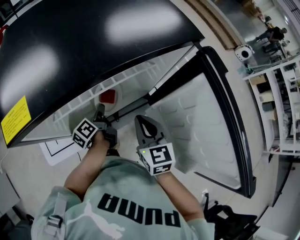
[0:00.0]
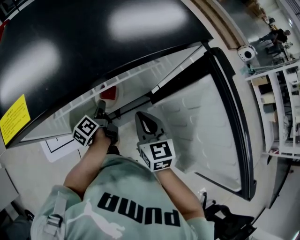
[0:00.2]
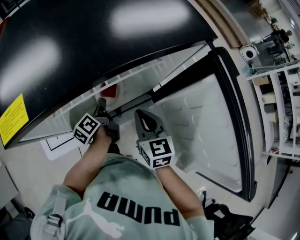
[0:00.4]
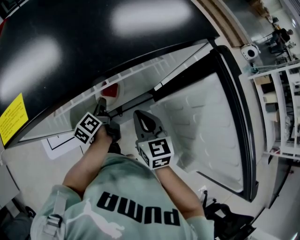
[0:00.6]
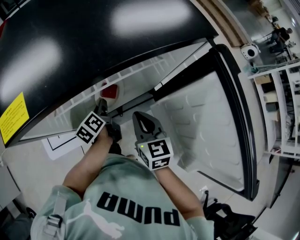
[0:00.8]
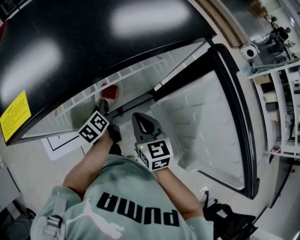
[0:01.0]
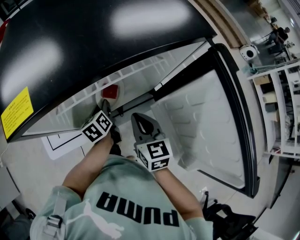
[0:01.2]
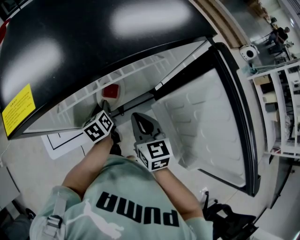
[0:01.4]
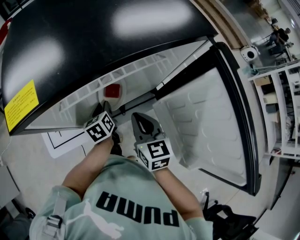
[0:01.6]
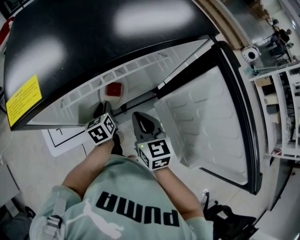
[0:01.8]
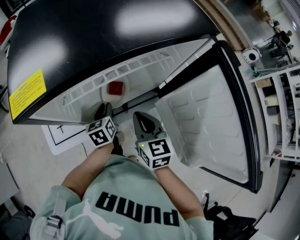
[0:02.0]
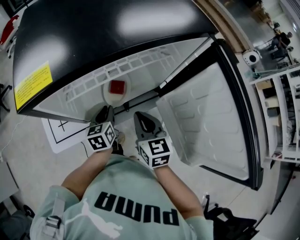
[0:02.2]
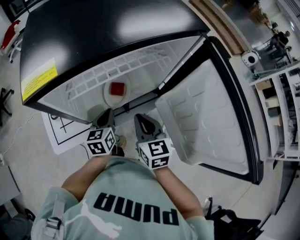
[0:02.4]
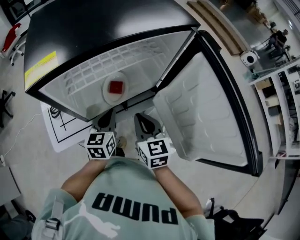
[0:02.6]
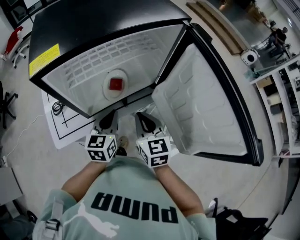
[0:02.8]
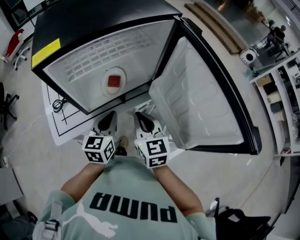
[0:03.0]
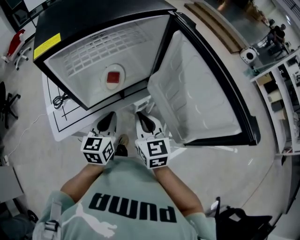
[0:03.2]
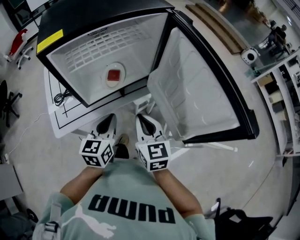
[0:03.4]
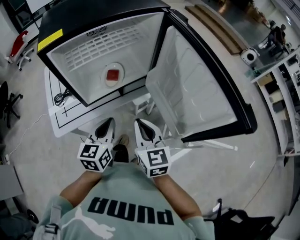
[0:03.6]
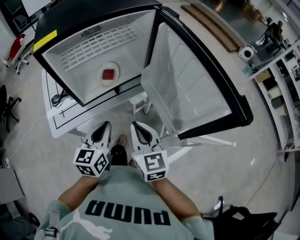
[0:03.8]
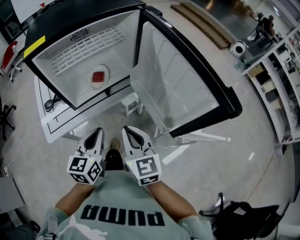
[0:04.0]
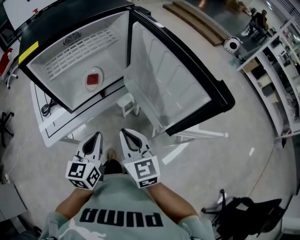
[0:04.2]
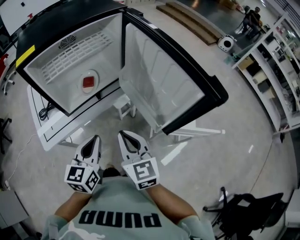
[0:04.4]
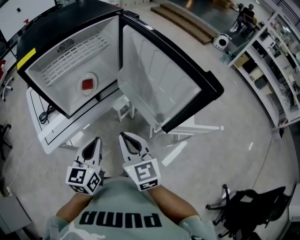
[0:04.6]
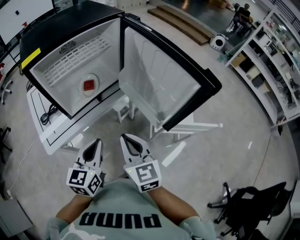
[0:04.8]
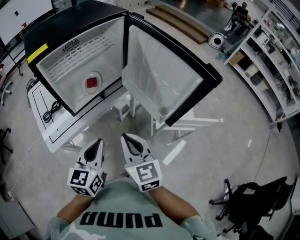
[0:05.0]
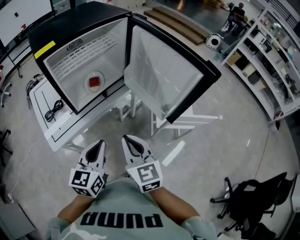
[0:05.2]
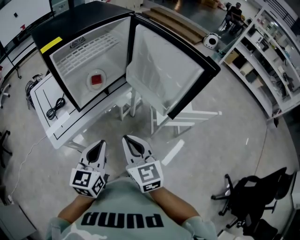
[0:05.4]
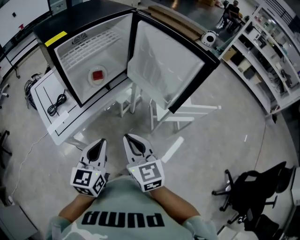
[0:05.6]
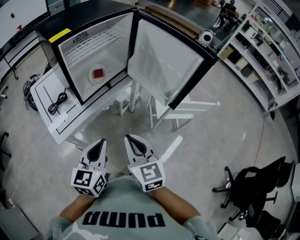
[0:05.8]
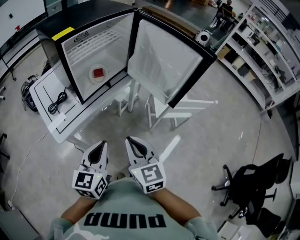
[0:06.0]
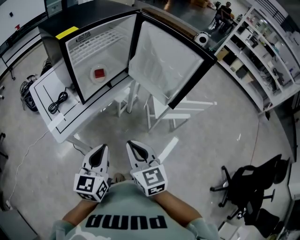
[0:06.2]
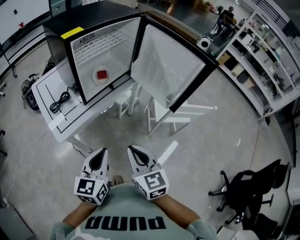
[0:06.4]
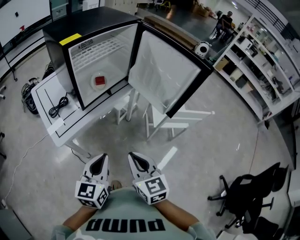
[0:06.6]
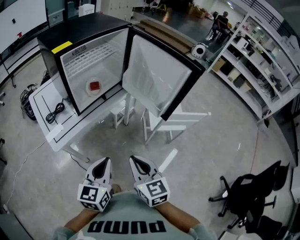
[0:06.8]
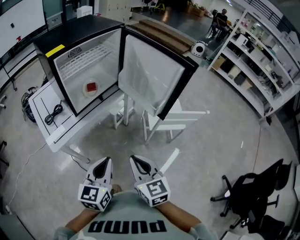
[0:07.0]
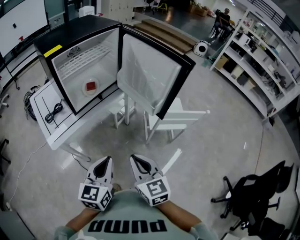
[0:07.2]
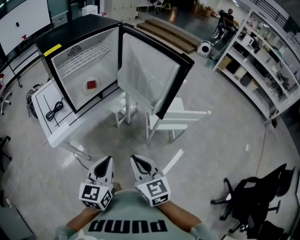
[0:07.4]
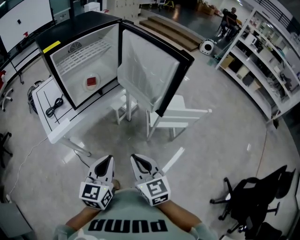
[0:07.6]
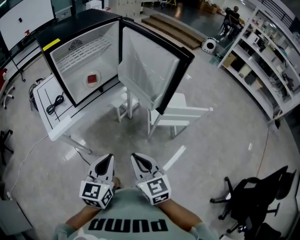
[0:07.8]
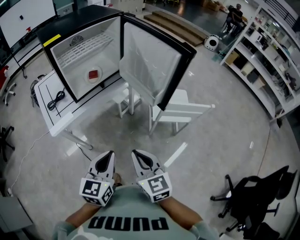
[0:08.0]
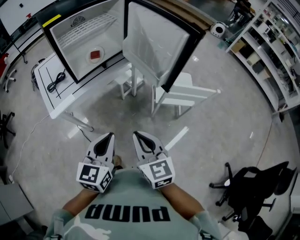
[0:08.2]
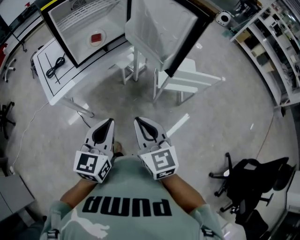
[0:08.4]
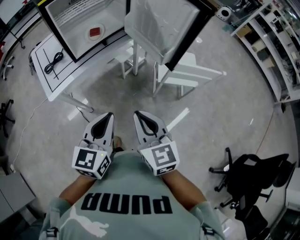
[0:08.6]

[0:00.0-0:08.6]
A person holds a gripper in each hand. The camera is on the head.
0:00.0 to 0:01.4: The left gripper rotates roughly 40 degrees.
0:01.4 to 0:02.8: The right gripper heads backward, covering roughly 5 cm, while the left gripper heads backward and upward, covering some 15 cm, changes its angle by approximately 40 degrees, and closes up.
0:02.8 to 0:04.4: The two grippers go roughly 20 cm backward.
0:04.4 to 0:05.8: The grippers both shift backward and to the left by some 15 cm.
0:05.8 to 0:07.2: The two grippers go some 10 cm to the right and backward.
0:07.2 to 0:08.6: The grippers make only small movements.

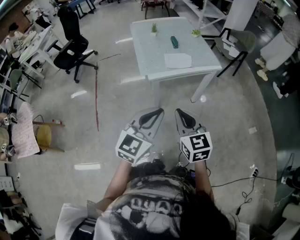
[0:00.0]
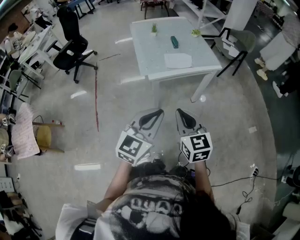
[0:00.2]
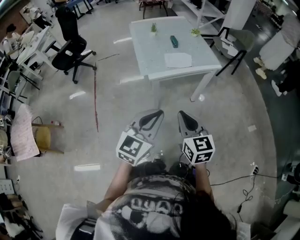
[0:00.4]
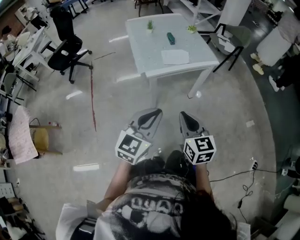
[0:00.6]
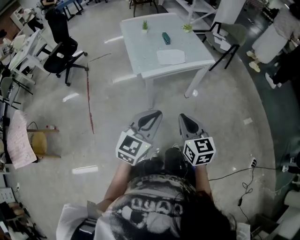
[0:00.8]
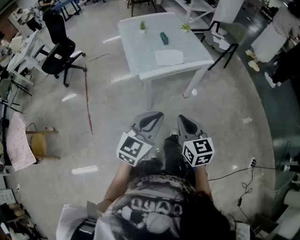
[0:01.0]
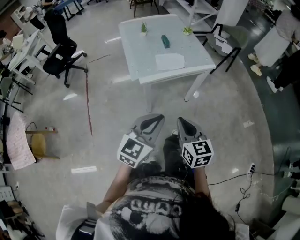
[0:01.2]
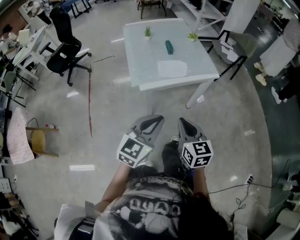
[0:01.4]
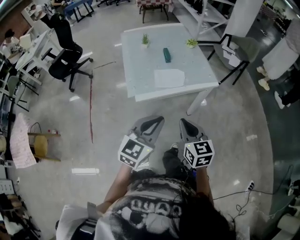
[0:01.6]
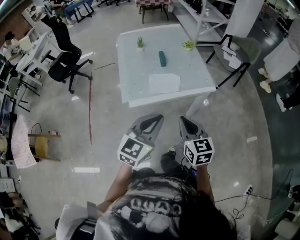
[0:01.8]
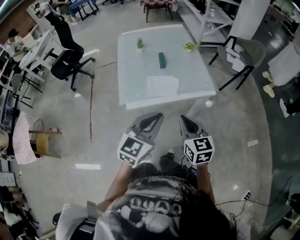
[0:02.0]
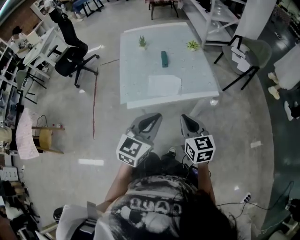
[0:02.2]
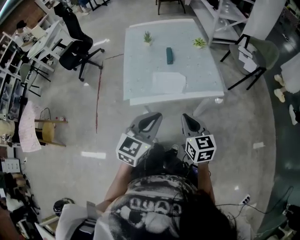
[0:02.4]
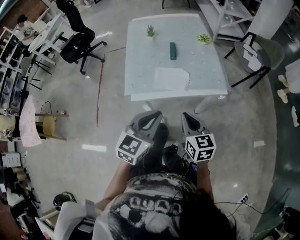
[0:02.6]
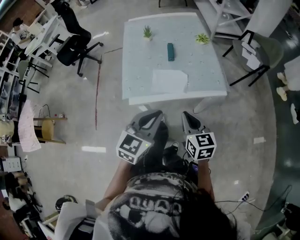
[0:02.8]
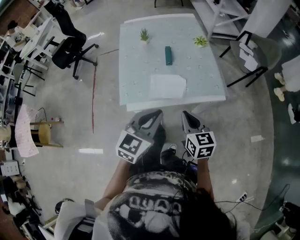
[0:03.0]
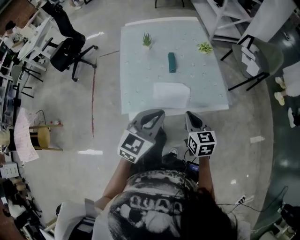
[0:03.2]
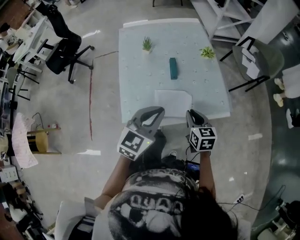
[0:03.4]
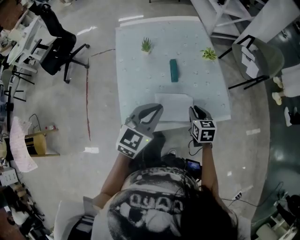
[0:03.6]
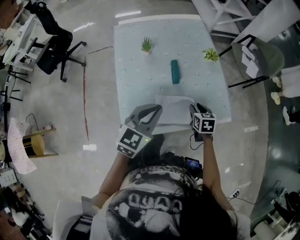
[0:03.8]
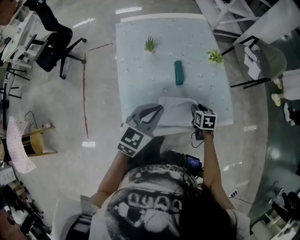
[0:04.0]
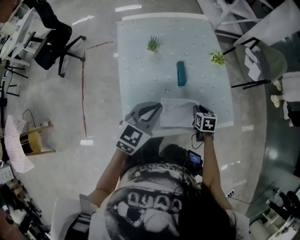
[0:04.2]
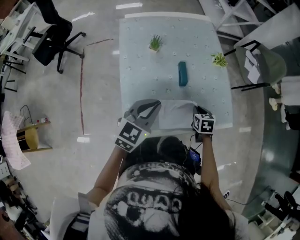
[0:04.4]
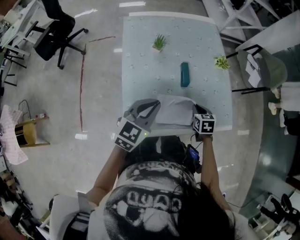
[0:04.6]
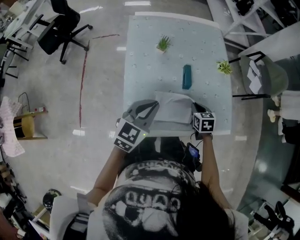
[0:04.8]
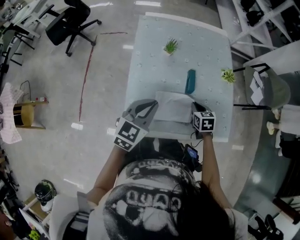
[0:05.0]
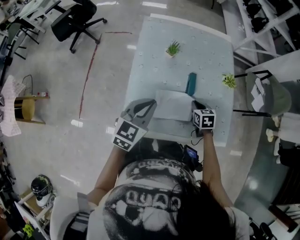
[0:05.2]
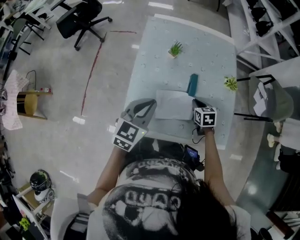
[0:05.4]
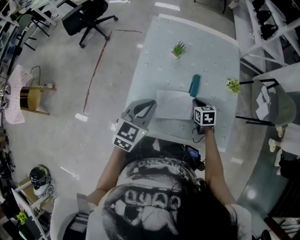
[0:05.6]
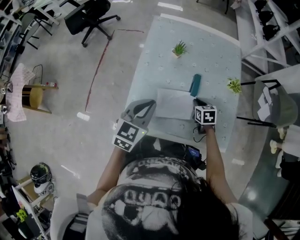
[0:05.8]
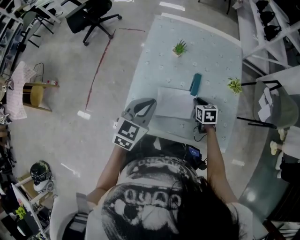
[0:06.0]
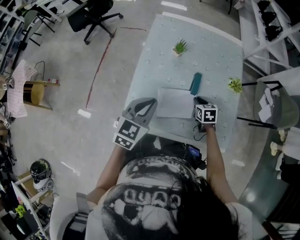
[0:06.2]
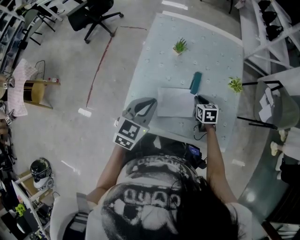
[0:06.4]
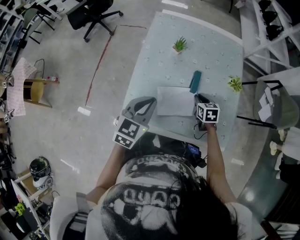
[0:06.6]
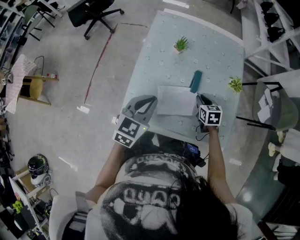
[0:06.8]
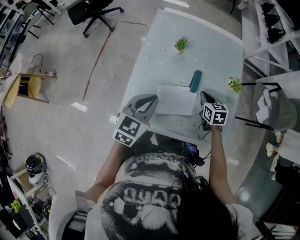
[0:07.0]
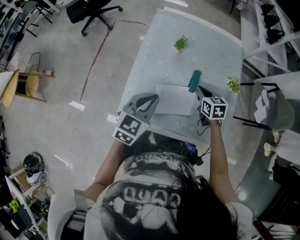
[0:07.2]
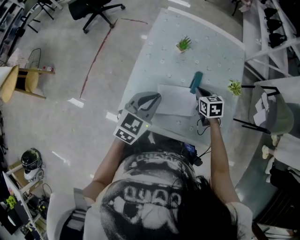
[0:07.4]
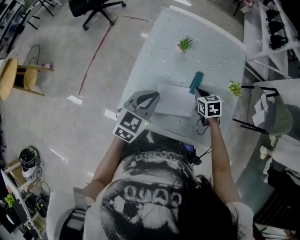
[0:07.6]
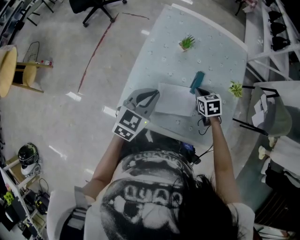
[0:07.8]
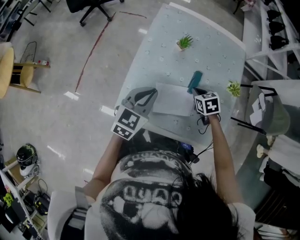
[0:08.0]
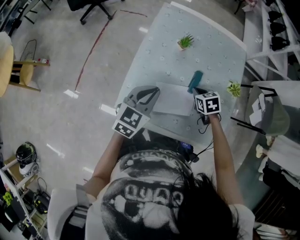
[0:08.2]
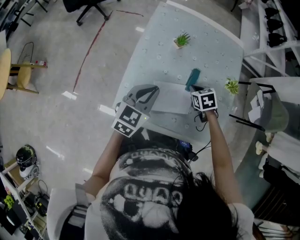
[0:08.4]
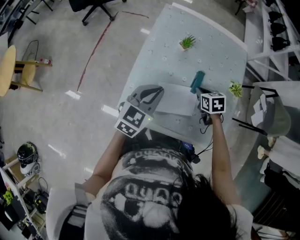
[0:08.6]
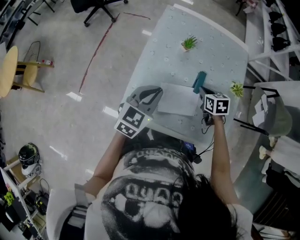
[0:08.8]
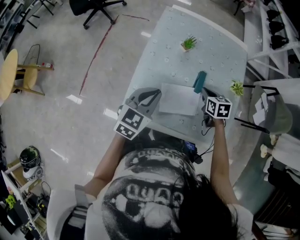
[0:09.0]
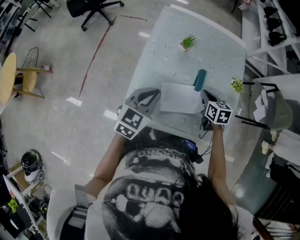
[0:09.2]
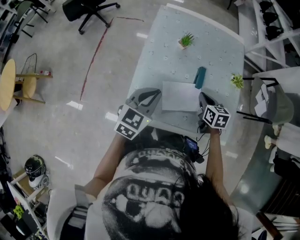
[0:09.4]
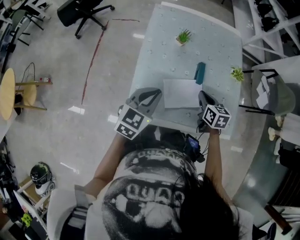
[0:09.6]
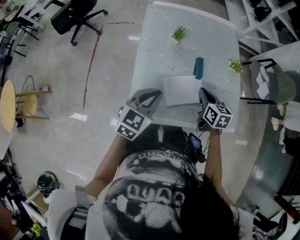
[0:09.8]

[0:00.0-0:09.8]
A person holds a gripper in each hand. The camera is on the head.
0:00.0 to 0:01.4: The left gripper is displaced forward and downward by roughly 10 cm. Meanwhile the right gripper travels forward, downward and to the right by approximately 10 cm.
0:01.4 to 0:02.8: Both grippers move forward and to the right, some 20 cm.
0:02.8 to 0:04.2: The right gripper shifts roughly 35 cm forward and downward, points its fingers roughly 30 degrees further downward, and opens up, while the left gripper heads forward and to the left, covering approximately 30 cm.
0:04.2 to 0:05.6: The left gripper ends up approximately 5 cm from where it was, and swivels some 20 degrees. Meanwhile the right gripper shifts by some 15 cm, and rotates about 30 degrees.
0:05.6 to 0:07.0: The right gripper shifts roughly 5 cm upward.
0:07.0 to 0:08.4: The right gripper changes place by roughly 5 cm, and changes its angle by approximately 30 degrees.
0:08.4 to 0:09.8: The right gripper goes roughly 10 cm upward and backward, and changes its angle by roughly 40 degrees. The left gripper travels backward by roughly 5 cm.

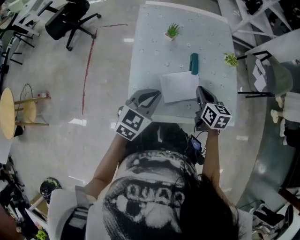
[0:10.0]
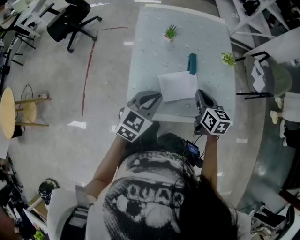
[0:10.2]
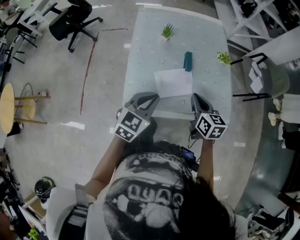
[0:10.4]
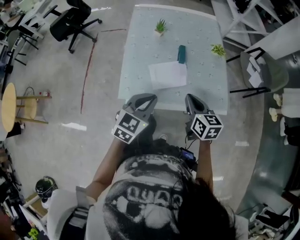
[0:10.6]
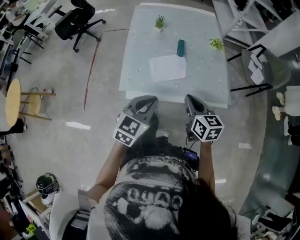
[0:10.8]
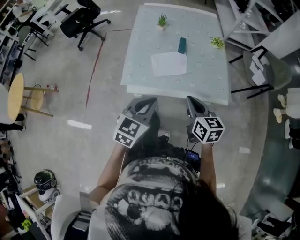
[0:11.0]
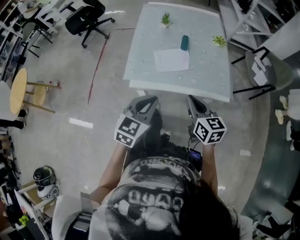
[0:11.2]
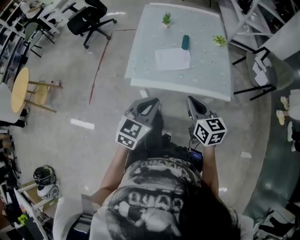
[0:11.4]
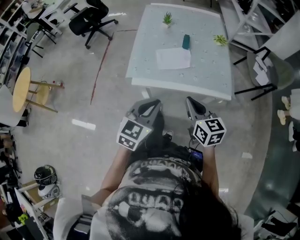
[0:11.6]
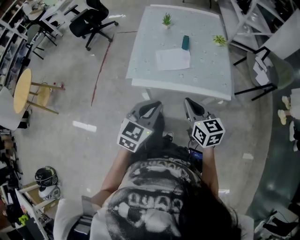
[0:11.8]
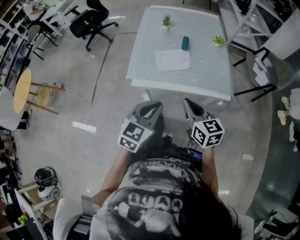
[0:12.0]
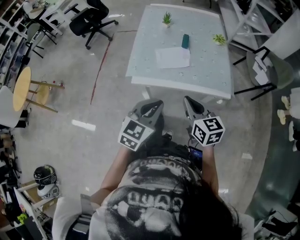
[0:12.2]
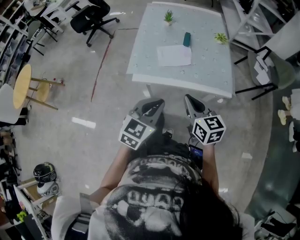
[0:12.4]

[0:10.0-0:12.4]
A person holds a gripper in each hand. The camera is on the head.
0:10.0 to 0:11.2: The right gripper goes about 25 cm backward. The left gripper travels backward and to the right by approximately 25 cm.
0:11.2 to 0:12.4: The left gripper changes place by roughly 5 cm.

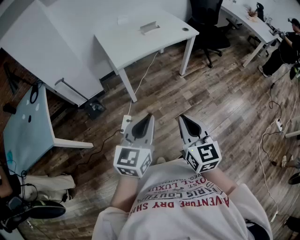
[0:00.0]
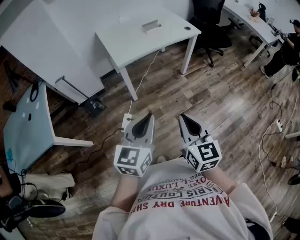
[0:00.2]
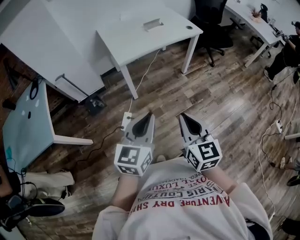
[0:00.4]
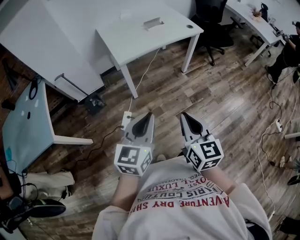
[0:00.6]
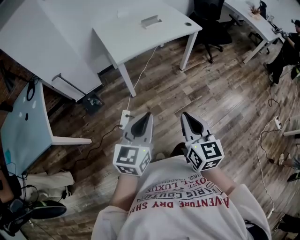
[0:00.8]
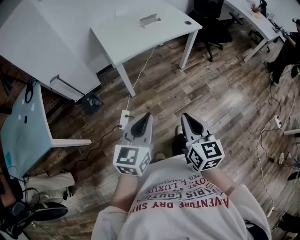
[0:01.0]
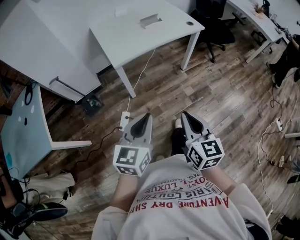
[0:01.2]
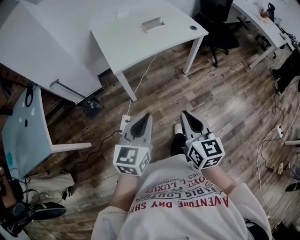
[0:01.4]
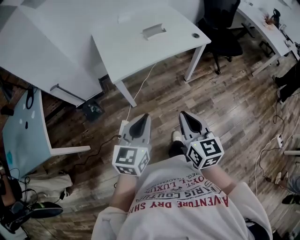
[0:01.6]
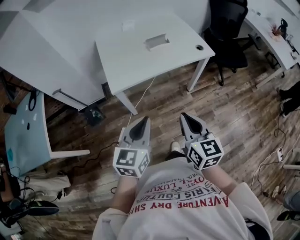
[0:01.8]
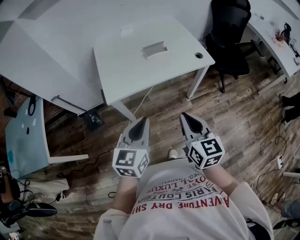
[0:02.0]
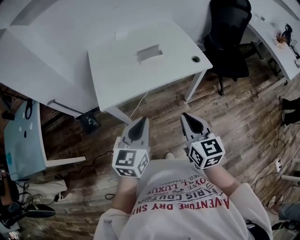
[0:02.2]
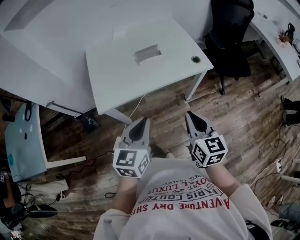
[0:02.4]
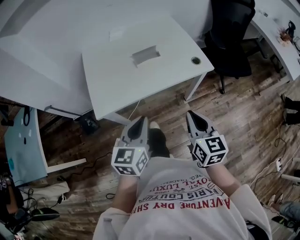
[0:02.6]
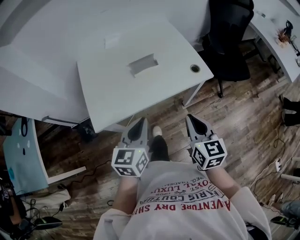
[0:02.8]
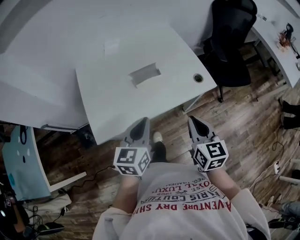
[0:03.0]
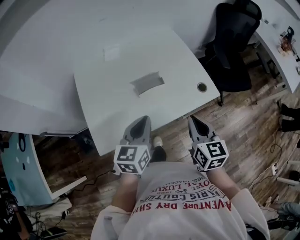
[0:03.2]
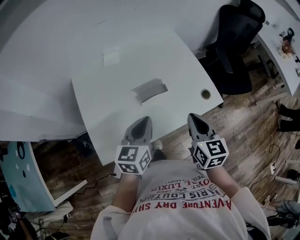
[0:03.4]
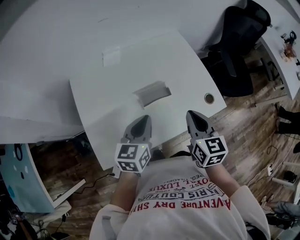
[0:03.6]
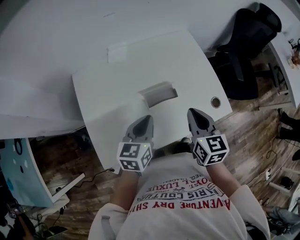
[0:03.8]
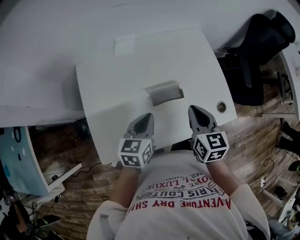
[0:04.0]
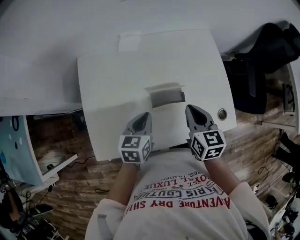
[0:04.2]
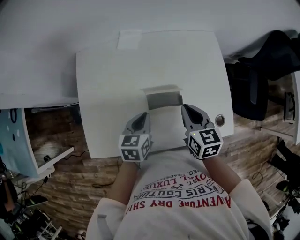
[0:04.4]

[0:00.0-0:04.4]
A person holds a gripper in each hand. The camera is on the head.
0:00.0 to 0:01.4: The grippers both shift forward by approximately 15 cm.
0:01.4 to 0:03.0: The pair of grippers is taken forward, some 50 cm.
0:03.0 to 0:04.4: The right gripper is displaced forward by about 30 cm, and rotates some 20 degrees. Meanwhile the left gripper shifts some 25 cm forward and downward, and changes its angle by roughly 30 degrees.